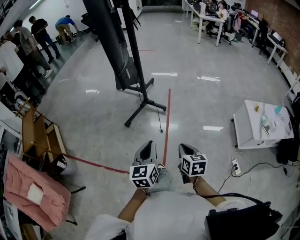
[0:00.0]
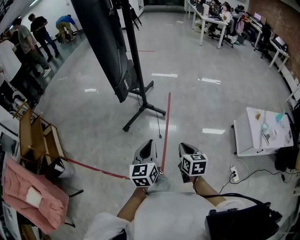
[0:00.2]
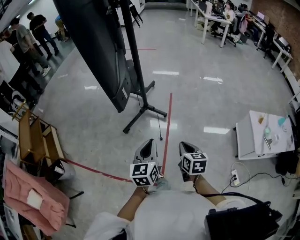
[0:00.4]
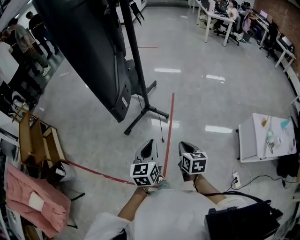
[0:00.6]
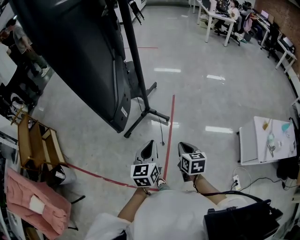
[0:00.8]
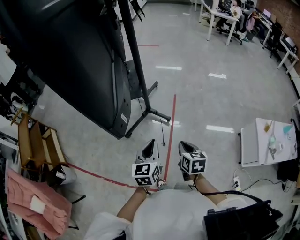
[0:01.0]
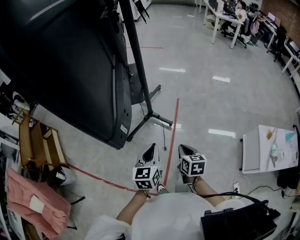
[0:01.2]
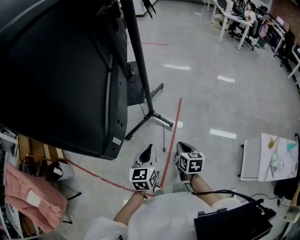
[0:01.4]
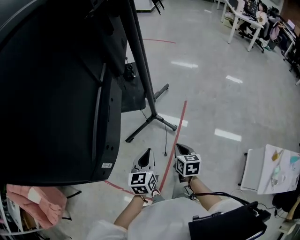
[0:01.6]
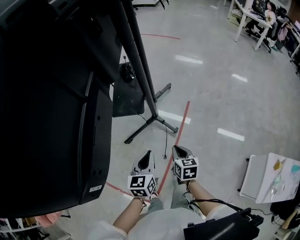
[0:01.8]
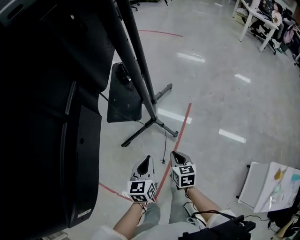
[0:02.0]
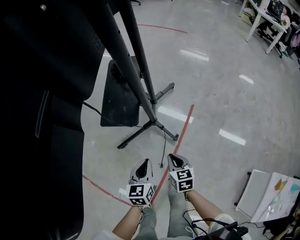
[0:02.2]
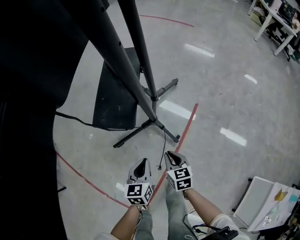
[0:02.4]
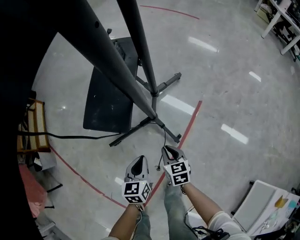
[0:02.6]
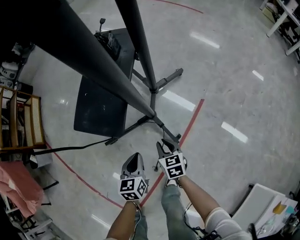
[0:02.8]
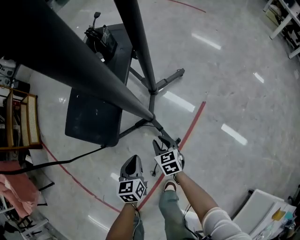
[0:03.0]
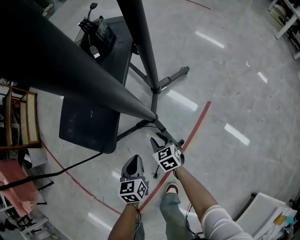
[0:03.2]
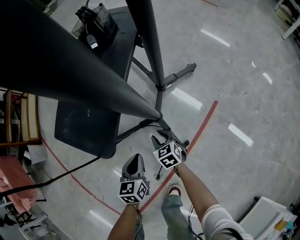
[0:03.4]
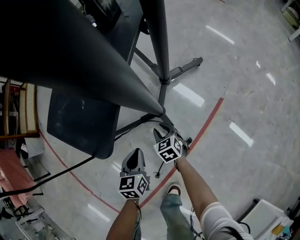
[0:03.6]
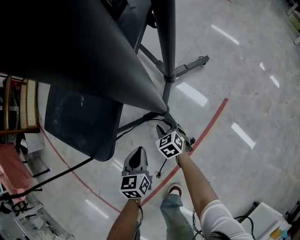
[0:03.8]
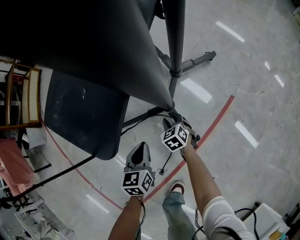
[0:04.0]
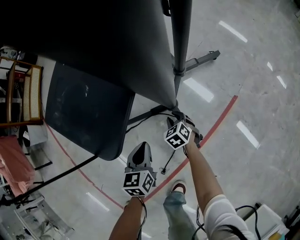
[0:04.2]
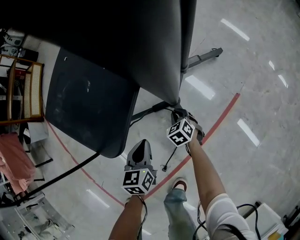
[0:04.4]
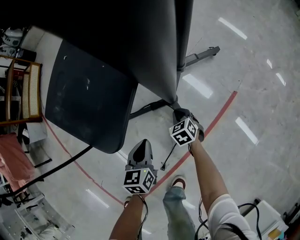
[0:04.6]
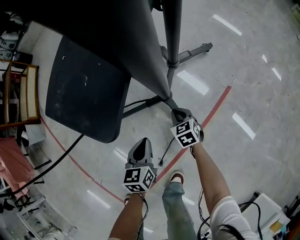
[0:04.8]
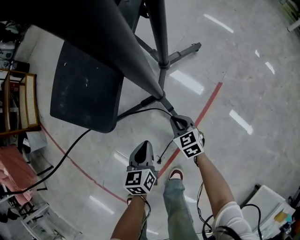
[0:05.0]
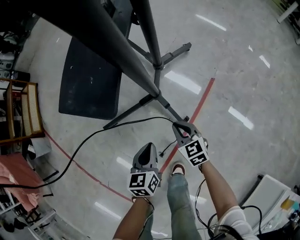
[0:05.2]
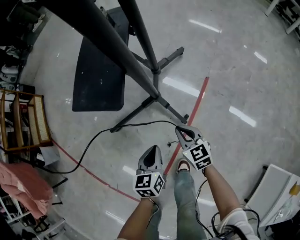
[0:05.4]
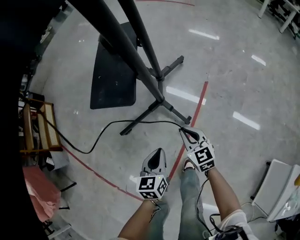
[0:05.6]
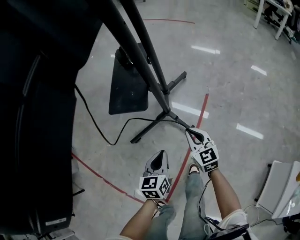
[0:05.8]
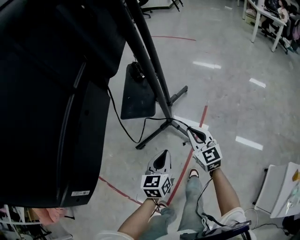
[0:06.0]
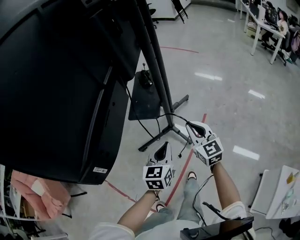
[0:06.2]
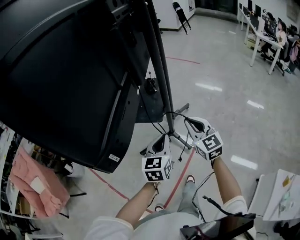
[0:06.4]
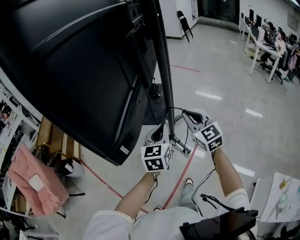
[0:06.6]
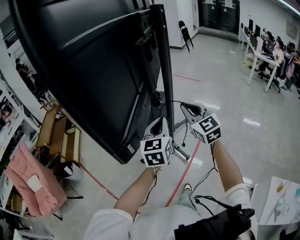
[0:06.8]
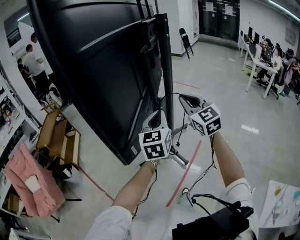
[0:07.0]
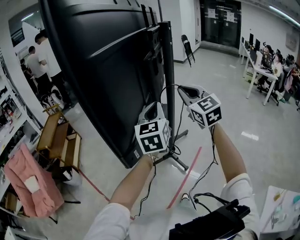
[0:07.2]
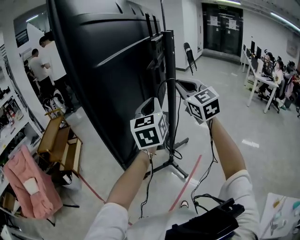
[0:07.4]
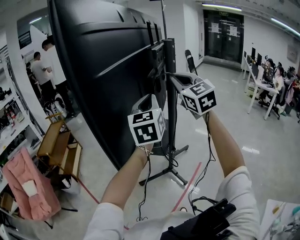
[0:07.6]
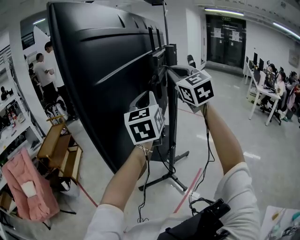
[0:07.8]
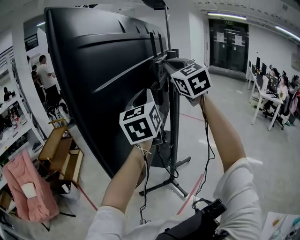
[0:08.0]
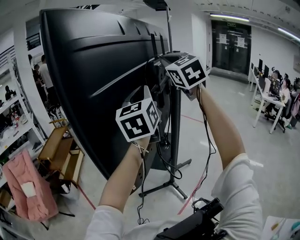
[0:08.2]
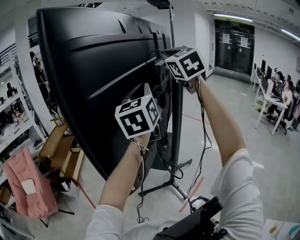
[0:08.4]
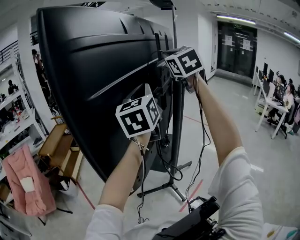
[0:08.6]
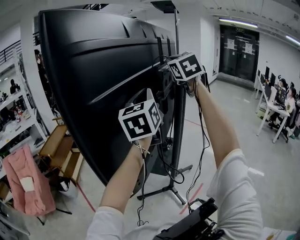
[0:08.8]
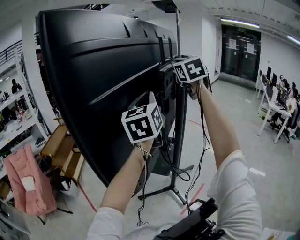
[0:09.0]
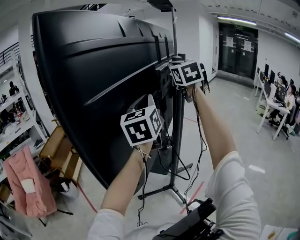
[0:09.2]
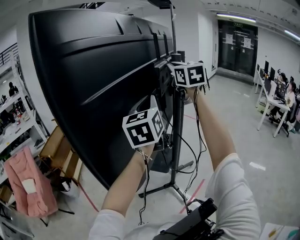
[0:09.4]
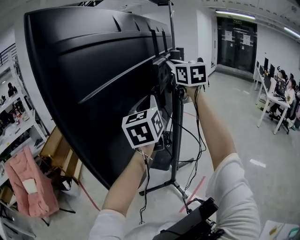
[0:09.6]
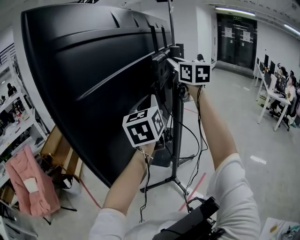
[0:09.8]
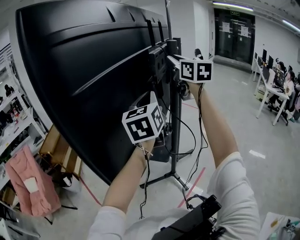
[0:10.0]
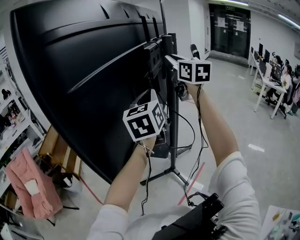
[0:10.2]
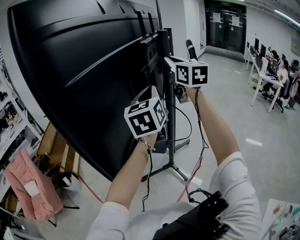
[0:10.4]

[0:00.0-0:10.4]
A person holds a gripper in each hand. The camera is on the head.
0:00.0 to 0:01.4: The two grippers go some 35 cm forward.
0:01.4 to 0:03.0: The two grippers go some 50 cm downward. The right gripper changes its angle by approximately 40 degrees. Meanwhile the left gripper rotates roughly 30 degrees.
0:03.0 to 0:04.4: The left gripper is displaced downward by approximately 10 cm. The right gripper moves downward and forward, about 25 cm, and changes its angle by some 30 degrees.
0:04.4 to 0:06.0: Both grippers move upward and backward, approximately 60 cm. The left gripper changes its angle by about 30 degrees. Meanwhile the right gripper tilts its fingers some 40 degrees upward.
0:06.0 to 0:07.4: Both grippers travel together upward, roughly 50 cm. The right gripper rotates roughly 30 degrees. Meanwhile the left gripper swivels roughly 30 degrees.
0:07.4 to 0:09.0: The right gripper is displaced forward and upward by some 25 cm, while the left gripper is displaced upward and forward by roughly 15 cm.
0:09.0 to 0:10.4: Both grippers move downward, approximately 10 cm. The right gripper swivels roughly 30 degrees.

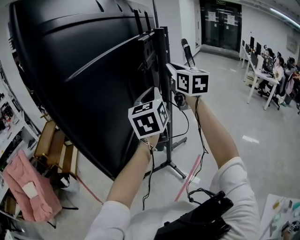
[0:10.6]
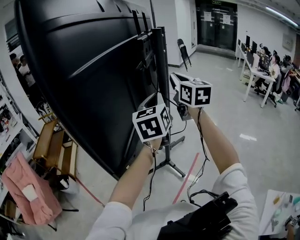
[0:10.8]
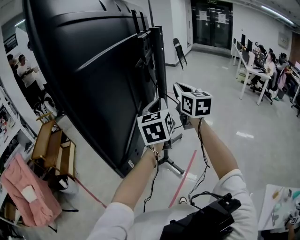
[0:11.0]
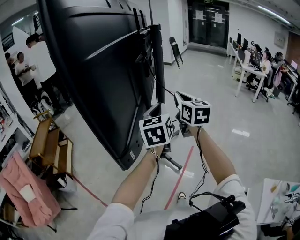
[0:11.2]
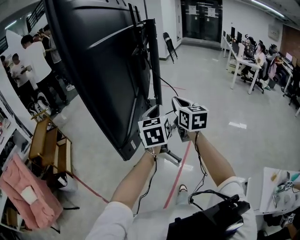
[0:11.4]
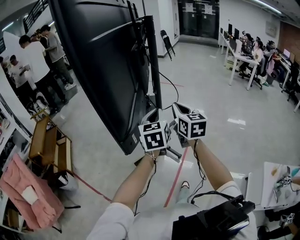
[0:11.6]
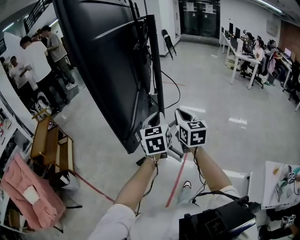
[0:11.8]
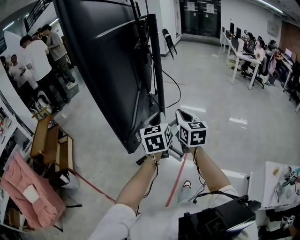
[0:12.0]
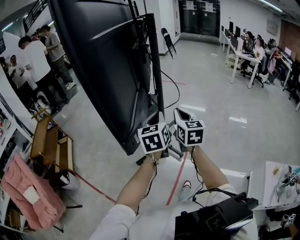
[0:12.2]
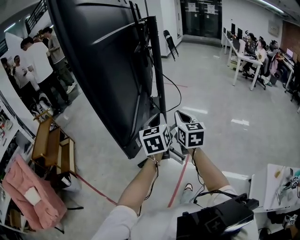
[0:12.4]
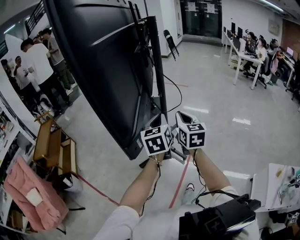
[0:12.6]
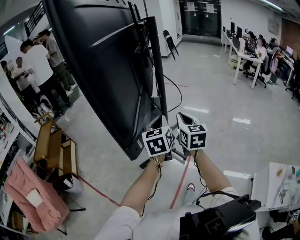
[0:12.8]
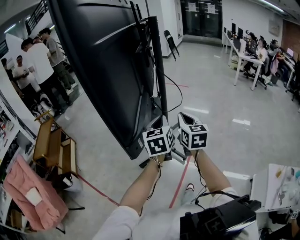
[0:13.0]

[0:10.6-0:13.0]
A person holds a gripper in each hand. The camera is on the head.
0:10.6 to 0:11.8: Both grippers move downward and backward, roughly 30 cm. The right gripper changes its angle by approximately 20 degrees.
0:11.8 to 0:13.0: The grippers stay close to where they were, moving slightly.

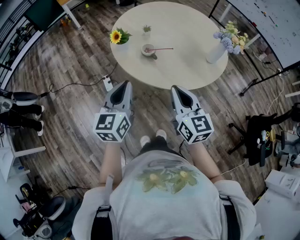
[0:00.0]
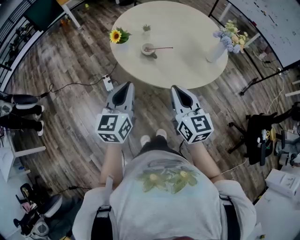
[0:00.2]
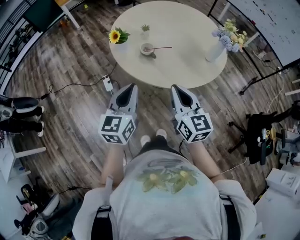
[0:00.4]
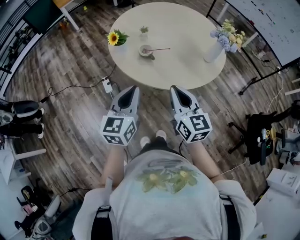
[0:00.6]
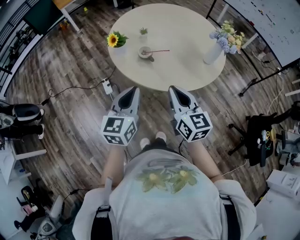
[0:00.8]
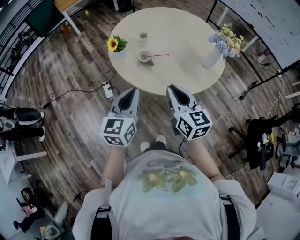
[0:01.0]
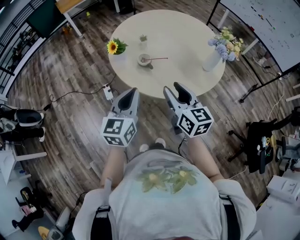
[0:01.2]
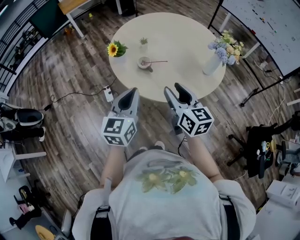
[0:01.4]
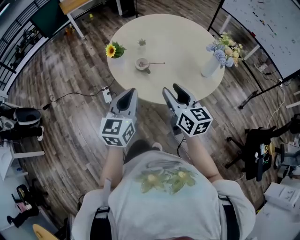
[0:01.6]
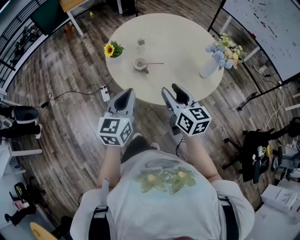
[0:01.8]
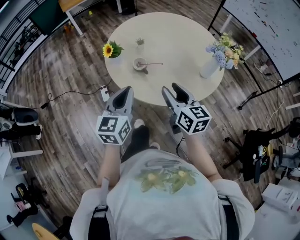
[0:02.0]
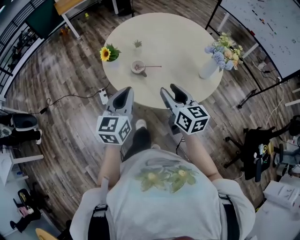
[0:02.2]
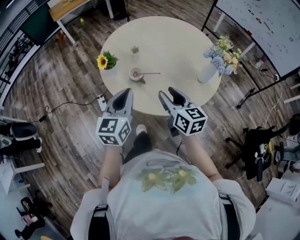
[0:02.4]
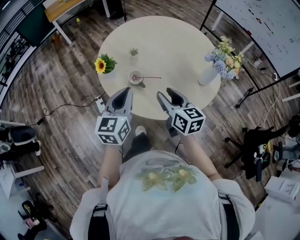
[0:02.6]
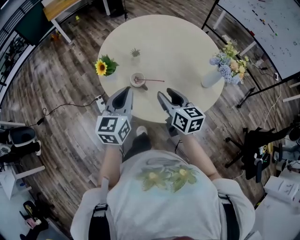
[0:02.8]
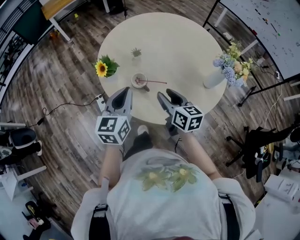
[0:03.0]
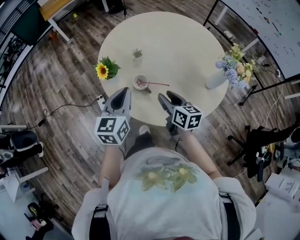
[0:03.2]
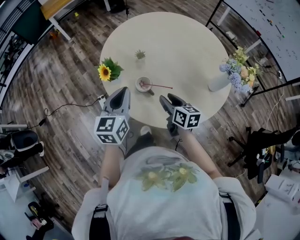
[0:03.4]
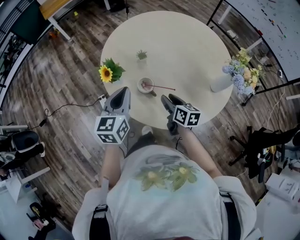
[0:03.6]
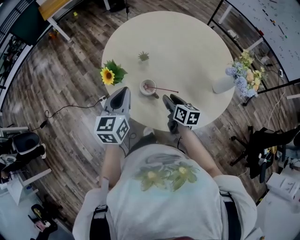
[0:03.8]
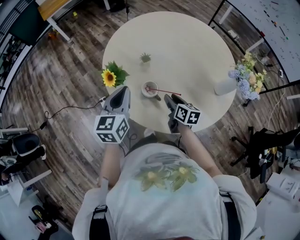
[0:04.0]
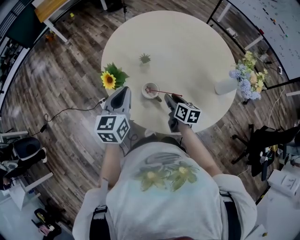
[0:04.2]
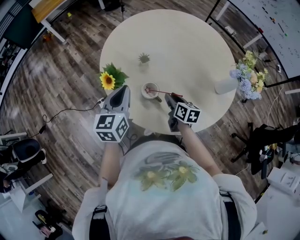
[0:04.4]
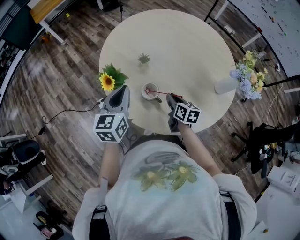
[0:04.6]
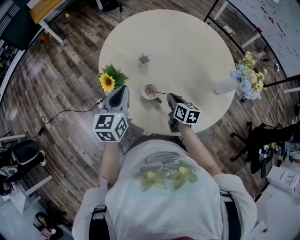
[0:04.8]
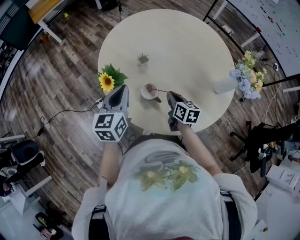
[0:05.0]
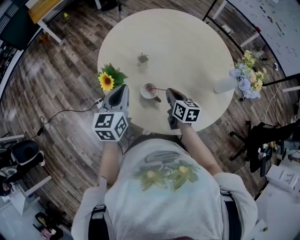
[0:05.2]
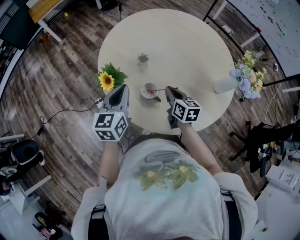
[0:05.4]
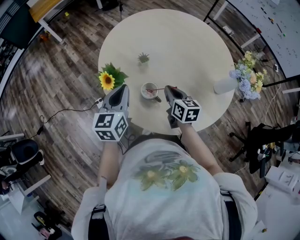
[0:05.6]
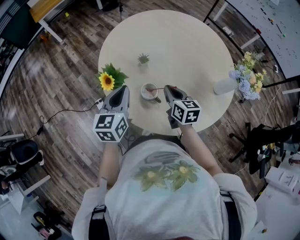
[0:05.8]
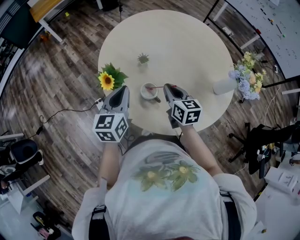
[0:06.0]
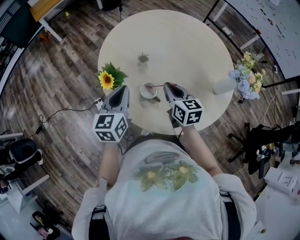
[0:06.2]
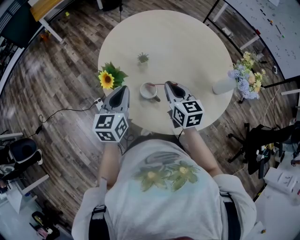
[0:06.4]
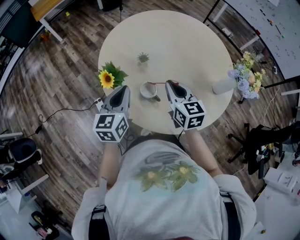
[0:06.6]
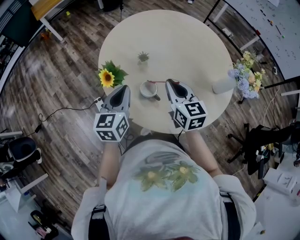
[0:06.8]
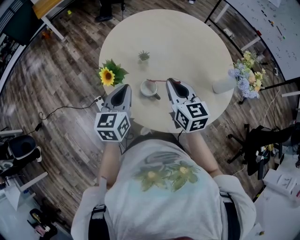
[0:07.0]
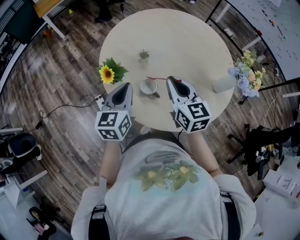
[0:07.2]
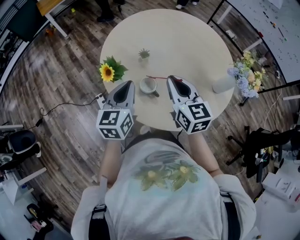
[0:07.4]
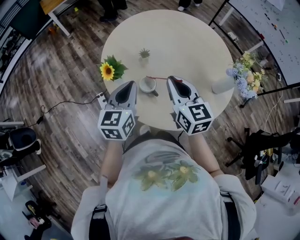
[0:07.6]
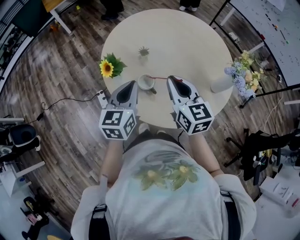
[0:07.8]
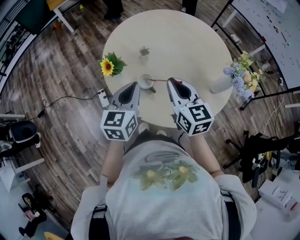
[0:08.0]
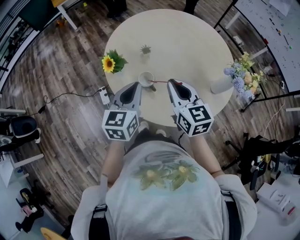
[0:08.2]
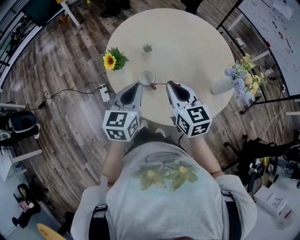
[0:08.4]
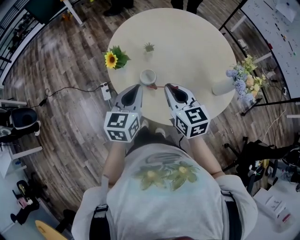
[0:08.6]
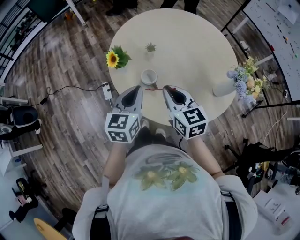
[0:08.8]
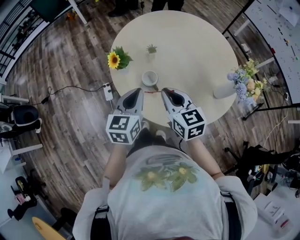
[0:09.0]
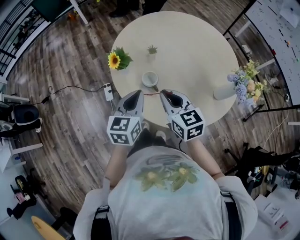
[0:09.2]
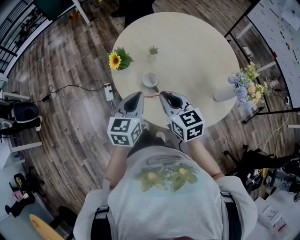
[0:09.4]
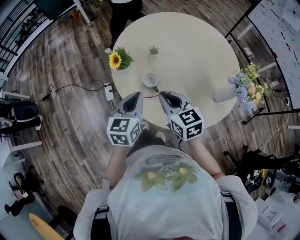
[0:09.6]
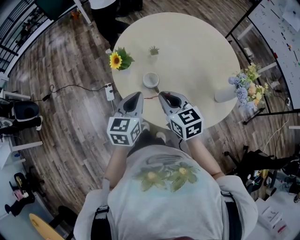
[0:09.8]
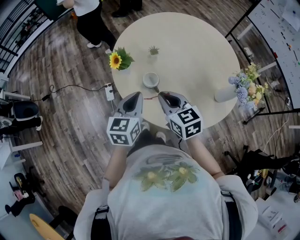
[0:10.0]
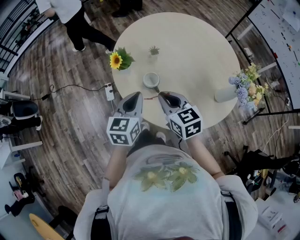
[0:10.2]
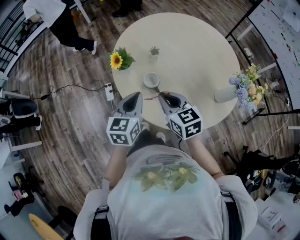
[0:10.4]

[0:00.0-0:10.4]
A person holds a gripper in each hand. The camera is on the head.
0:00.0 to 0:01.4: The right gripper goes roughly 5 cm forward, and opens; the left gripper goes about 5 cm to the right.
0:01.4 to 0:03.0: The left gripper heads forward, covering some 20 cm; the right gripper is displaced forward and downward by about 20 cm.
0:03.0 to 0:04.4: The right gripper heads downward and forward, covering about 15 cm, and changes its angle by about 20 degrees; the left gripper shifts approximately 15 cm forward and to the left.
0:04.4 to 0:06.0: The right gripper moves upward, approximately 10 cm, turns by approximately 20 degrees, and closes up.
0:06.0 to 0:07.4: The right gripper goes roughly 10 cm upward; the left gripper changes place by some 5 cm.
0:07.4 to 0:09.0: The grippers both shift backward by approximately 10 cm.
0:09.0 to 0:10.4: The grippers stay close to where they were, moving slightly.
